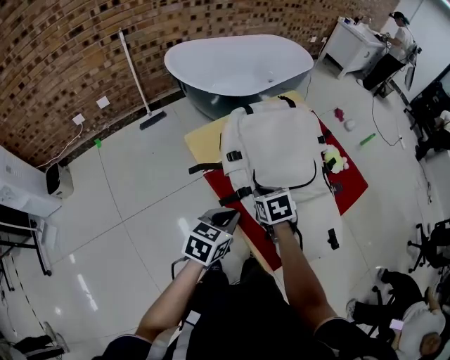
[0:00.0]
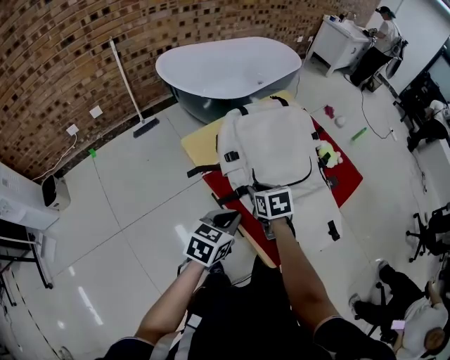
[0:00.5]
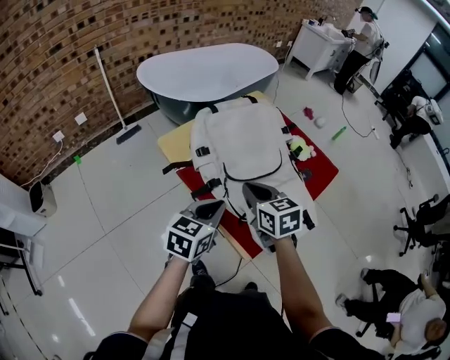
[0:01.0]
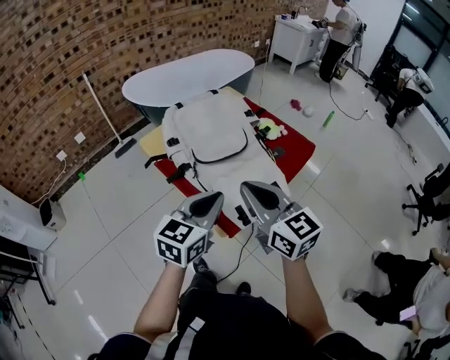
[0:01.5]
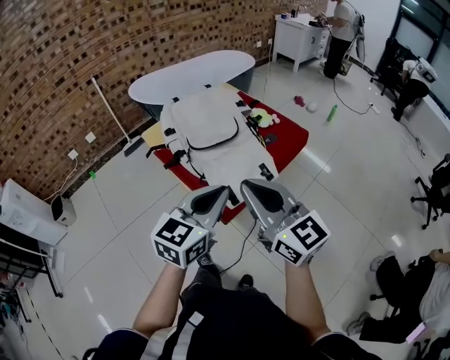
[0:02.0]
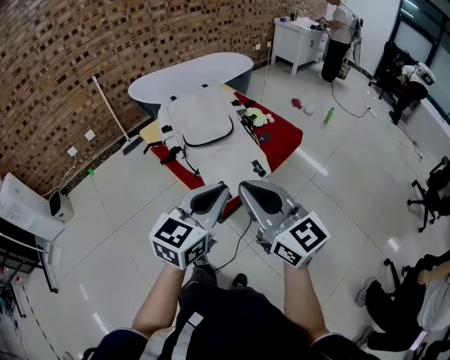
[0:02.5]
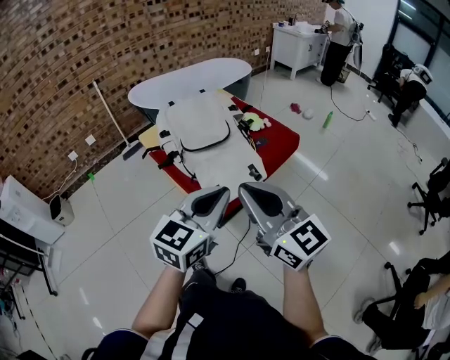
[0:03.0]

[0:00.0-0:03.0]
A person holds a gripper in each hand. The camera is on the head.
0:00.0 to 0:01.5: The left gripper heads upward, to the right and backward, covering about 25 cm, and rotates roughly 20 degrees. Meanwhile the right gripper shifts about 35 cm upward, backward and to the right, and tilts its fingers roughly 50 degrees upward.
0:01.5 to 0:03.0: Both grippers travel together backward, to the right and upward, about 15 cm.

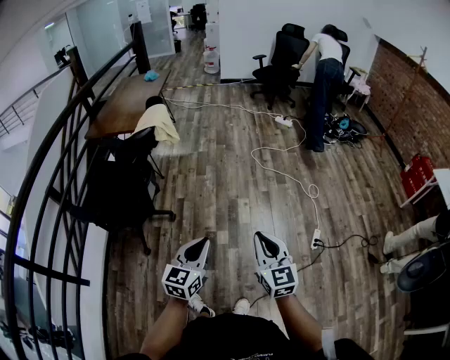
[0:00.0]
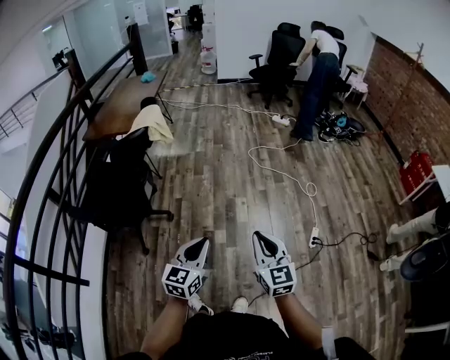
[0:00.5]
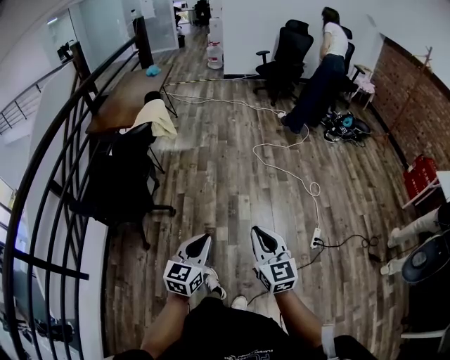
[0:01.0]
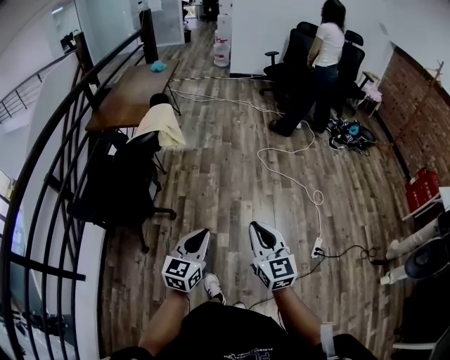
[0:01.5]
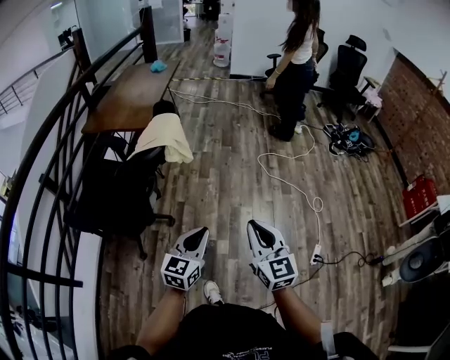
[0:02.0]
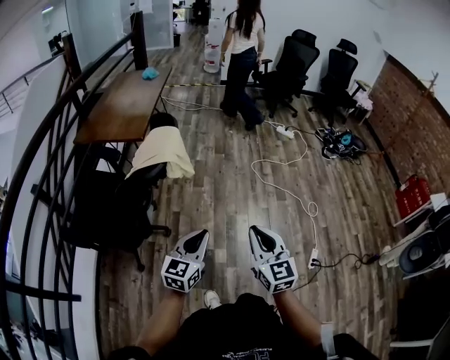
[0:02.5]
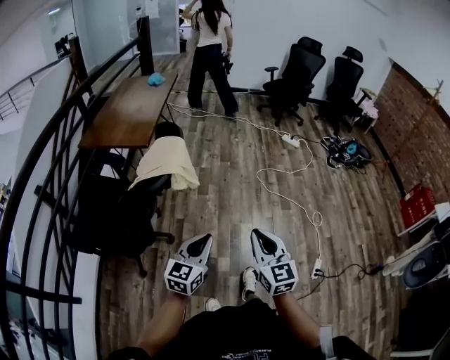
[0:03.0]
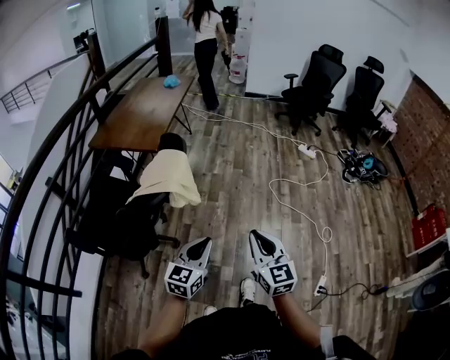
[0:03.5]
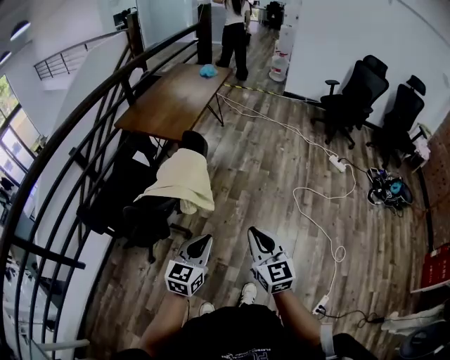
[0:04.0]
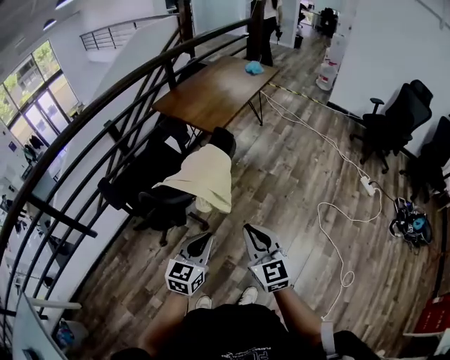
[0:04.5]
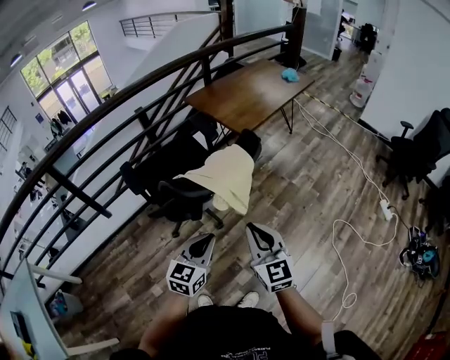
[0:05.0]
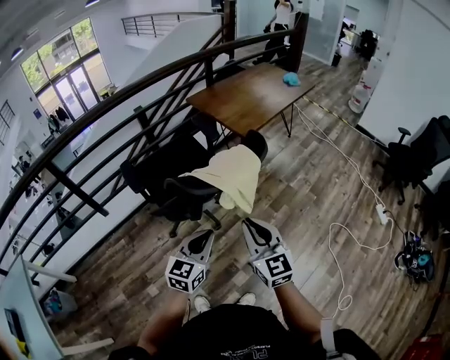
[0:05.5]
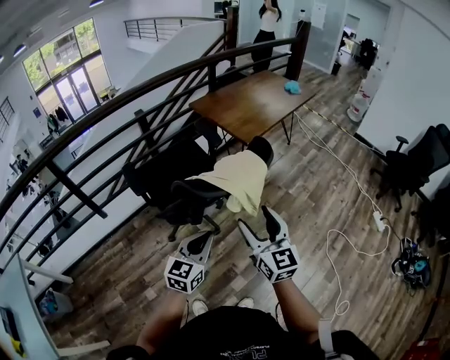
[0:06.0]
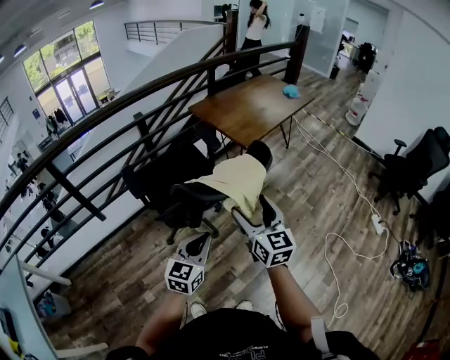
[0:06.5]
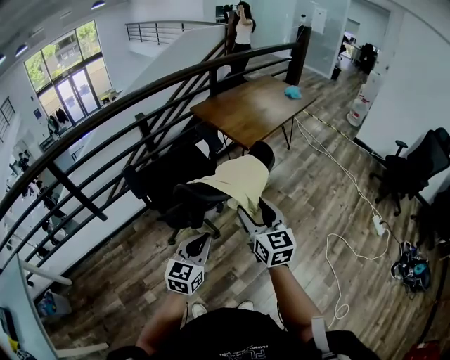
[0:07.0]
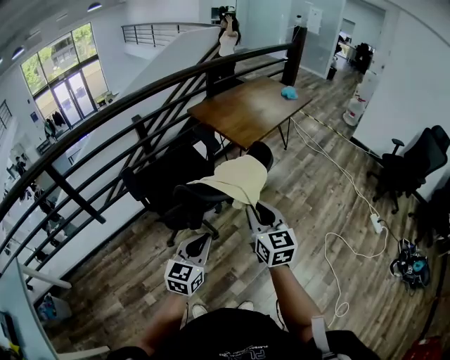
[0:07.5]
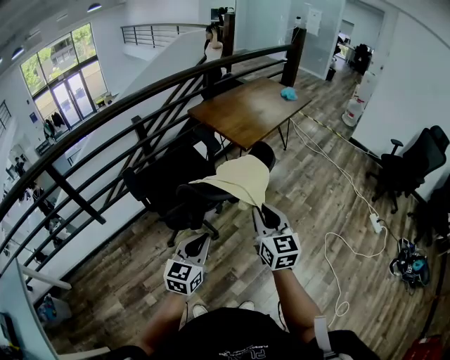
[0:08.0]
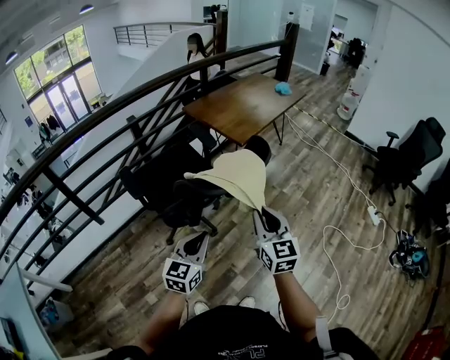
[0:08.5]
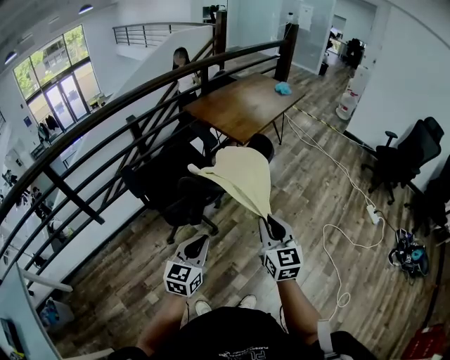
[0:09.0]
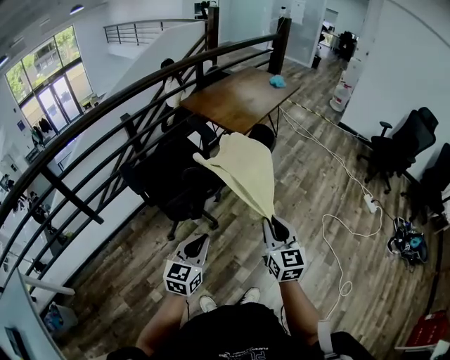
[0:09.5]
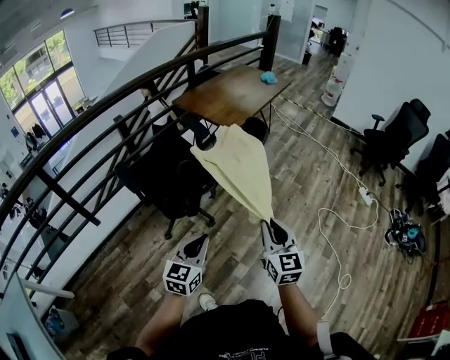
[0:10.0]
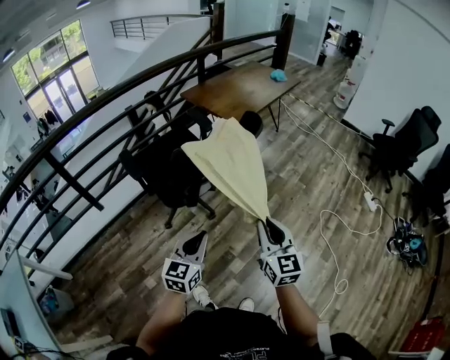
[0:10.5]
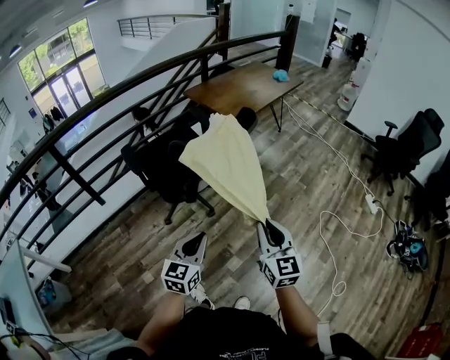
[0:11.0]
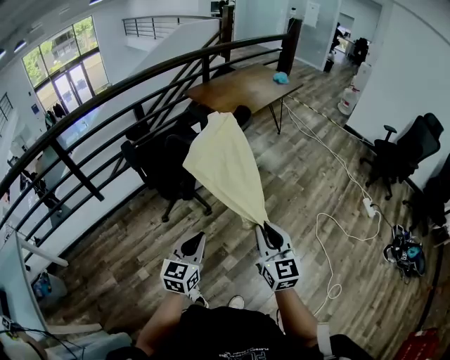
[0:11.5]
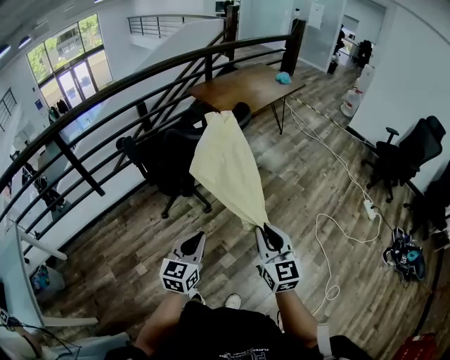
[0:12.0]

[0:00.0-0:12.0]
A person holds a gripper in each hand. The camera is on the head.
0:00.0 to 0:02.0: The left gripper goes roughly 15 cm forward, while the right gripper goes roughly 20 cm forward and to the left.
0:02.0 to 0:04.0: Both grippers move forward, roughly 20 cm.
0:04.0 to 0:06.0: The right gripper shifts by about 15 cm, changes its angle by roughly 30 degrees, and opens. The left gripper ends up roughly 10 cm from where it was, and rotates some 30 degrees.
0:06.0 to 0:08.0: The right gripper closes its fingers.
0:08.0 to 0:10.0: The right gripper travels backward by approximately 15 cm; the left gripper is displaced backward by some 10 cm.
0:10.0 to 0:12.0: The left gripper is displaced to the right and backward by roughly 15 cm. Meanwhile the right gripper is displaced backward and to the right by approximately 15 cm.

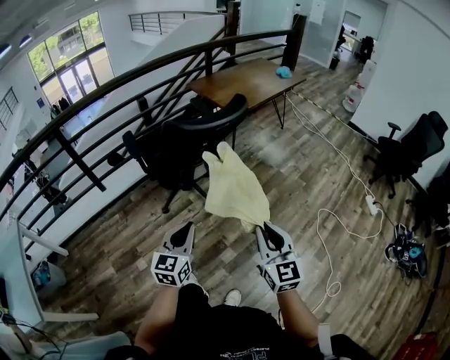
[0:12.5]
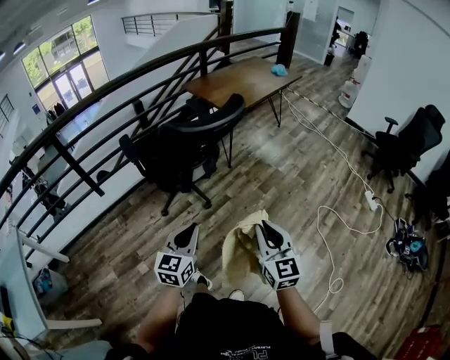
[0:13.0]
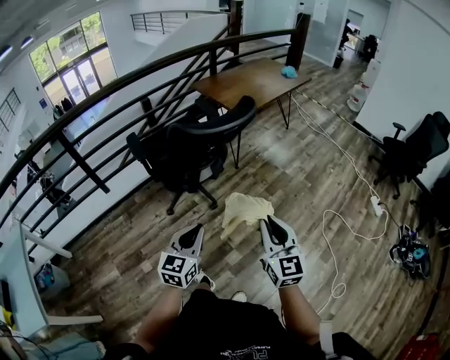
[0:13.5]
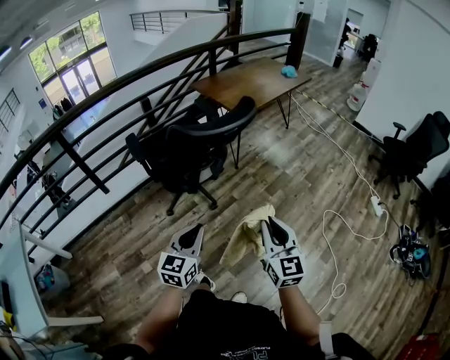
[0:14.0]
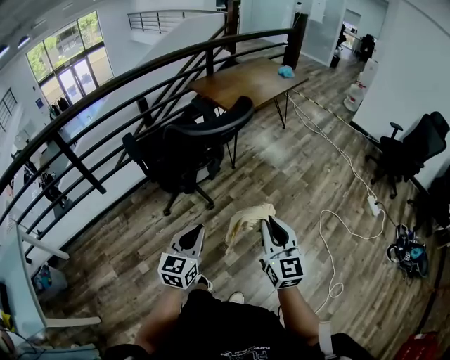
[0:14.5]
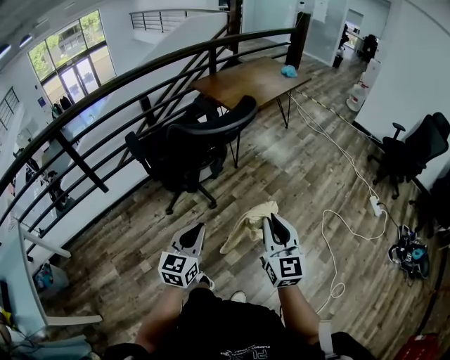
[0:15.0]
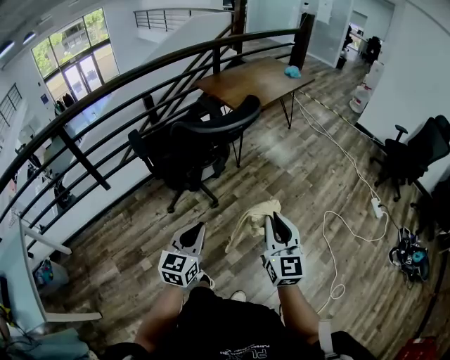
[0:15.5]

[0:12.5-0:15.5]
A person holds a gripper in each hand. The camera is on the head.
0:12.5 to 0:14.0: The right gripper shifts some 5 cm forward.
0:14.0 to 0:15.5: There are only small adjustments of the grippers.

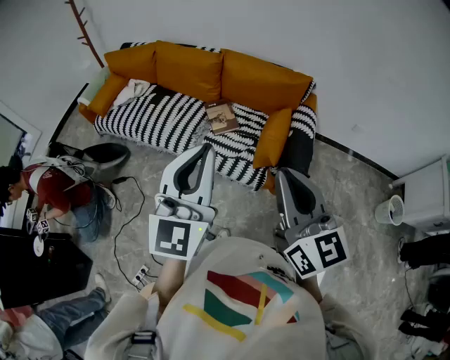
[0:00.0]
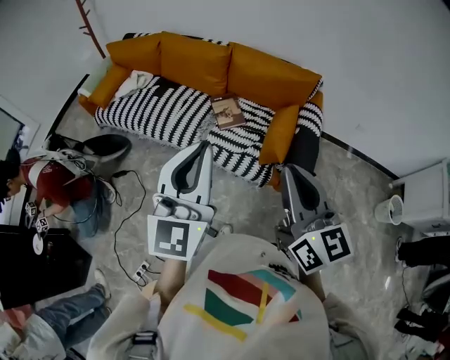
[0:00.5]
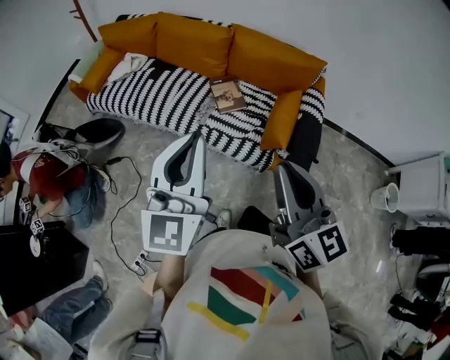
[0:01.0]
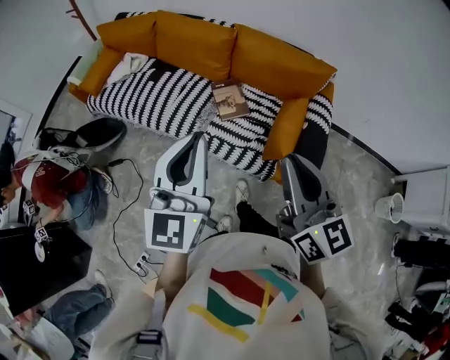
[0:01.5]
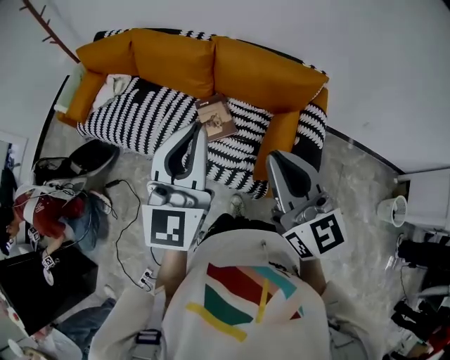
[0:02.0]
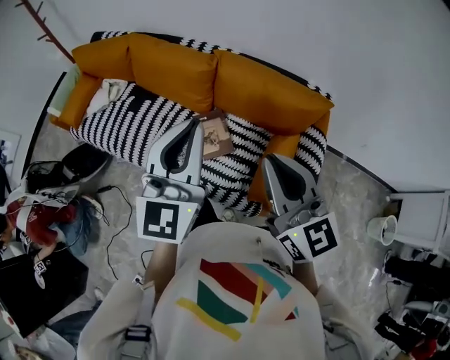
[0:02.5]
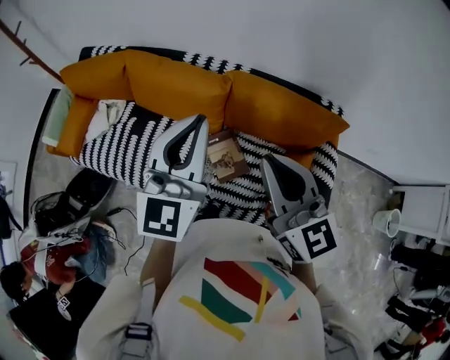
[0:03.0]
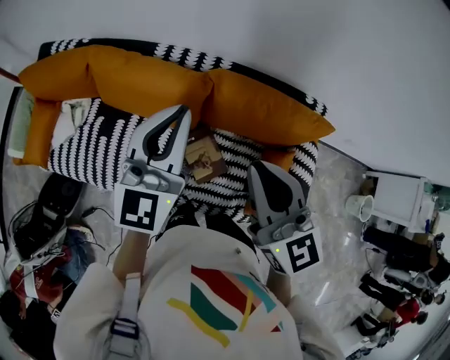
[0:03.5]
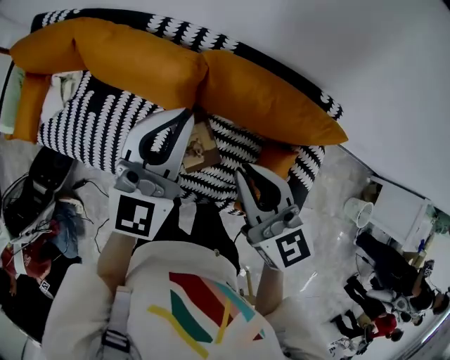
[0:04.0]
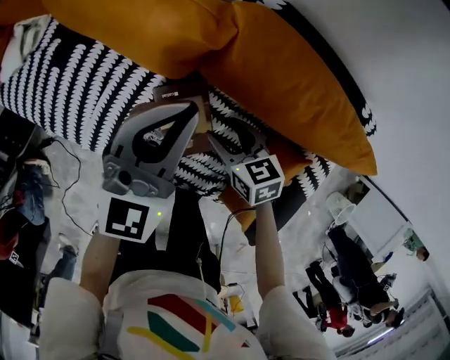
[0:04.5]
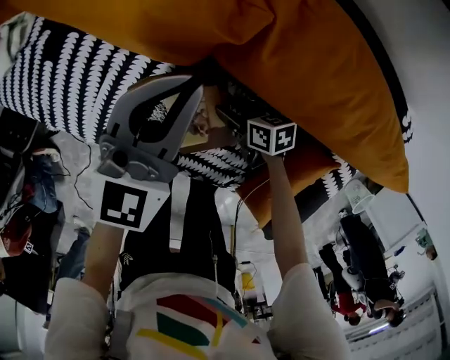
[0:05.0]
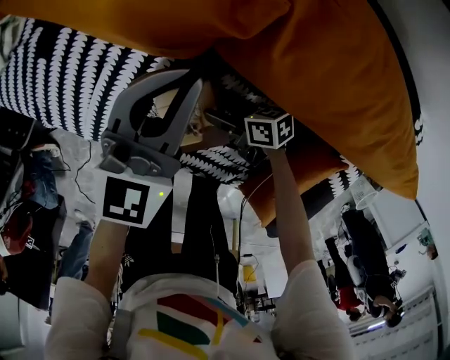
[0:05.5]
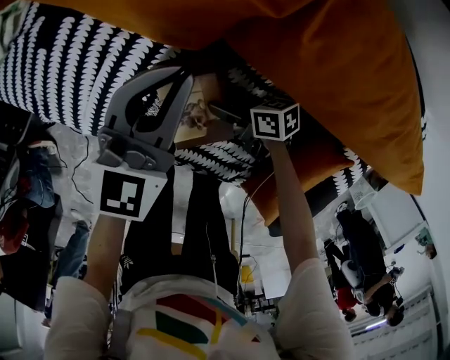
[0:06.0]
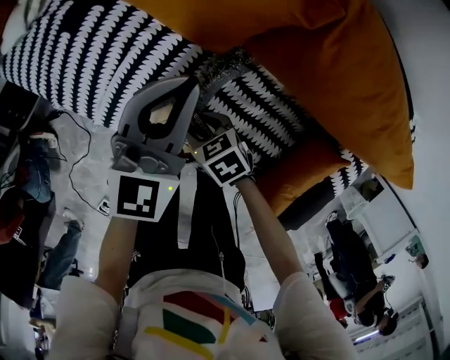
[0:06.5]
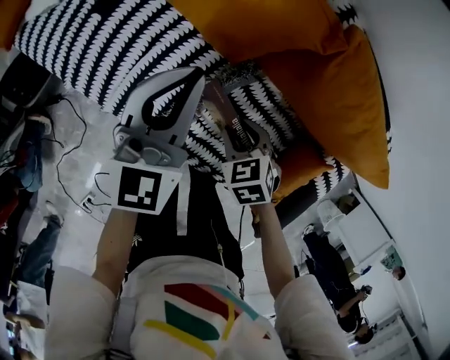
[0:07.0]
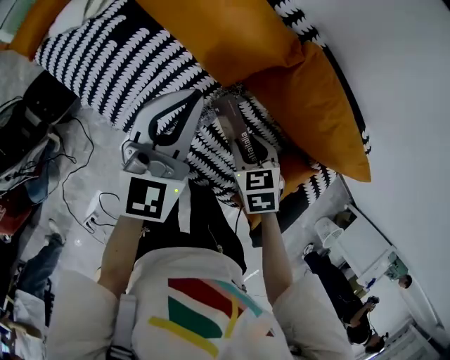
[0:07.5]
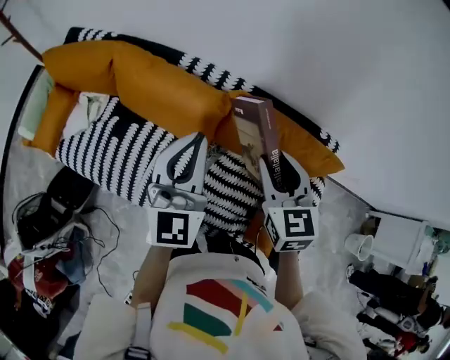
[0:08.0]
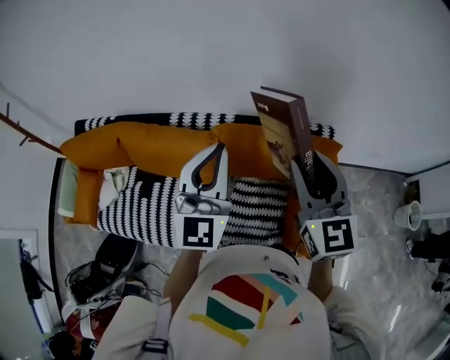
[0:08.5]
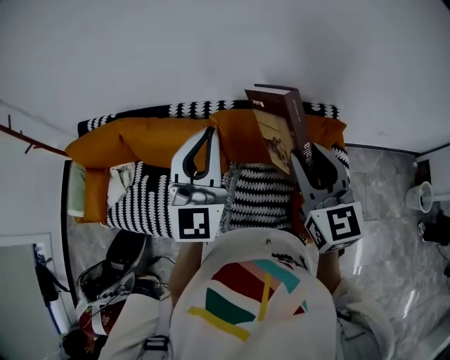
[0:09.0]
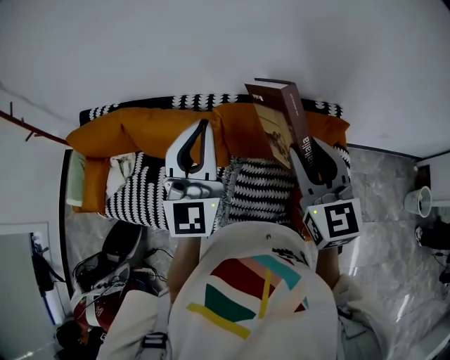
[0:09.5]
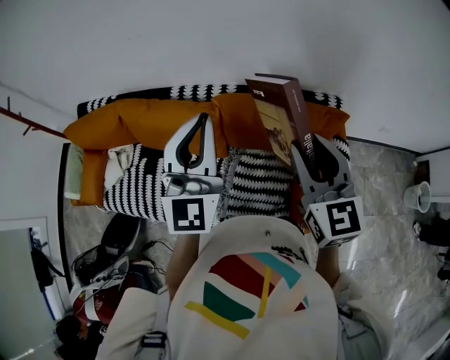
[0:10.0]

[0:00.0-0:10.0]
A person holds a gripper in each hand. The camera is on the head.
0:00.0 to 0:02.0: The grippers both shift forward by about 25 cm.
0:02.0 to 0:04.0: The left gripper goes about 40 cm forward. Meanwhile the right gripper travels forward and downward by approximately 35 cm.
0:04.0 to 0:06.0: The left gripper goes approximately 35 cm downward. The right gripper is displaced downward by some 50 cm, rotates roughly 70 degrees, and opens its fingers.
0:06.0 to 0:08.0: The right gripper heads upward, covering roughly 50 cm, swivels some 80 degrees, and closes up, while the left gripper shifts roughly 35 cm upward, and rotates some 20 degrees.
0:08.0 to 0:10.0: The left gripper moves upward and to the right, some 15 cm, and rotates roughly 20 degrees, while the right gripper moves to the right, upward and backward, about 20 cm, and swivels about 20 degrees.
